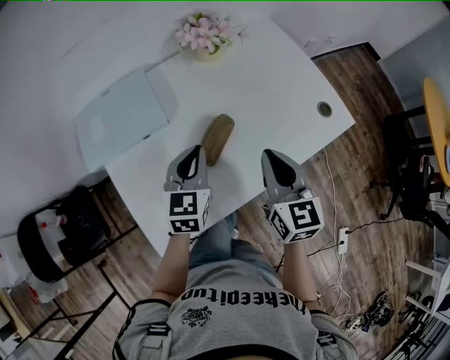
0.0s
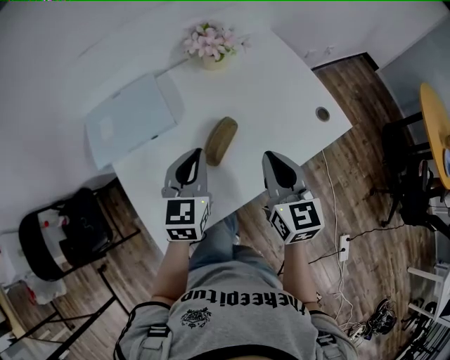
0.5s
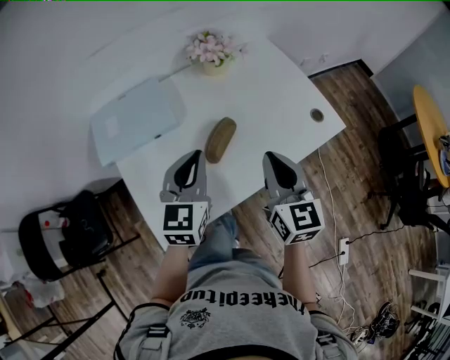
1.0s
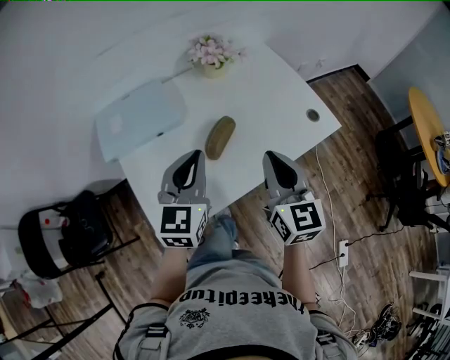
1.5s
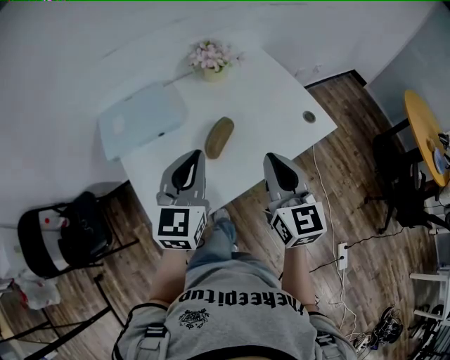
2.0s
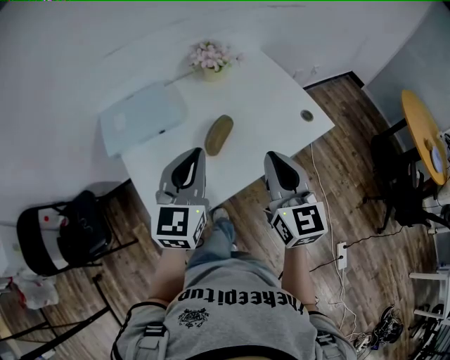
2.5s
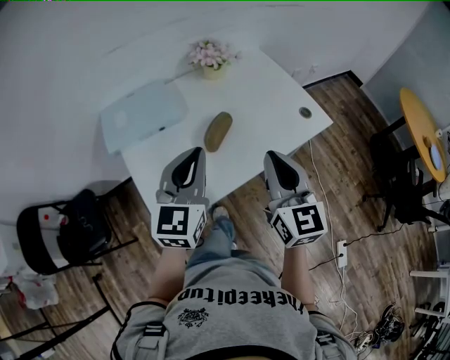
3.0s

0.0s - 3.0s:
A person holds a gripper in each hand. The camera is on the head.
0.0s - 1.5s: The left gripper goes roughly 15 cm upward and backward. Meanwhile the right gripper shifts approximately 10 cm backward and upward.
1.5s - 3.0s: Both grippers move backward, approximately 5 cm.

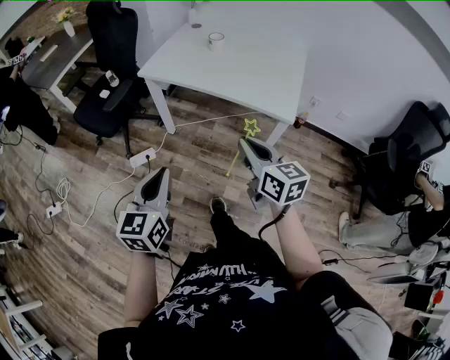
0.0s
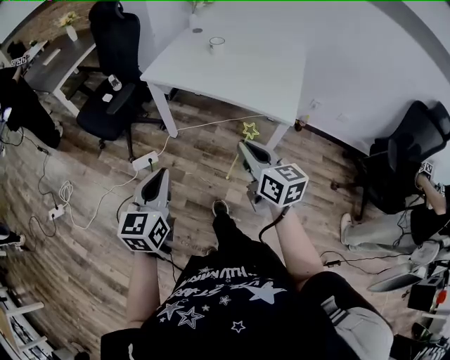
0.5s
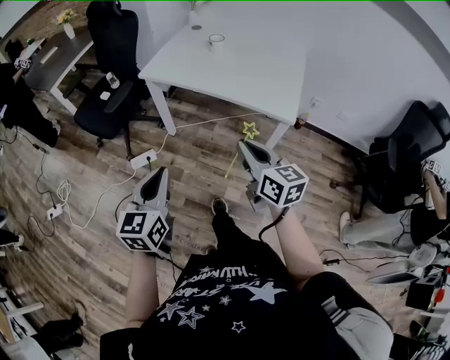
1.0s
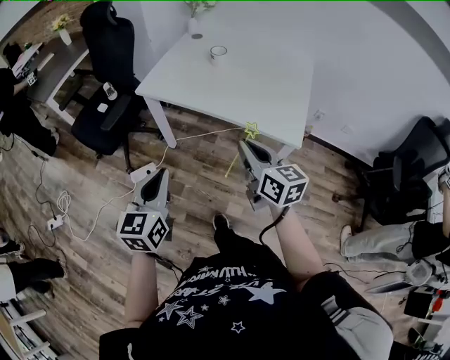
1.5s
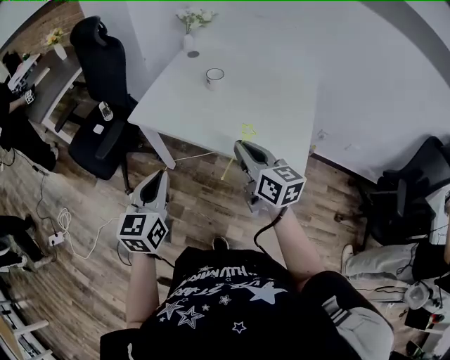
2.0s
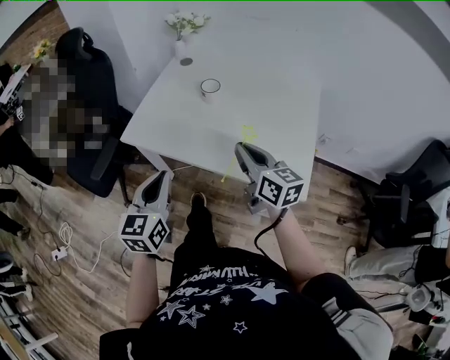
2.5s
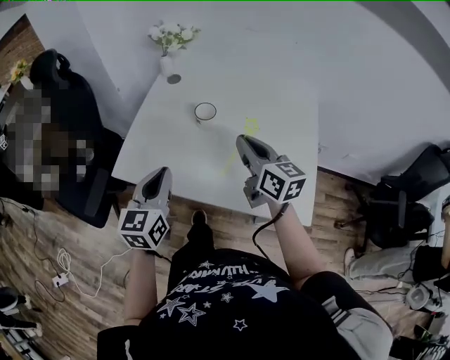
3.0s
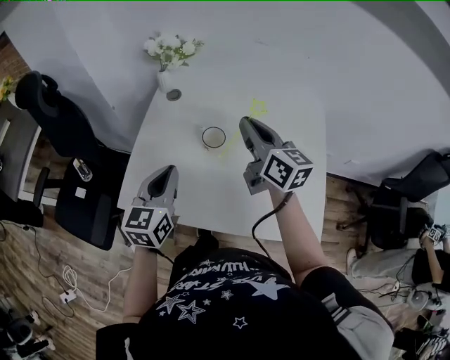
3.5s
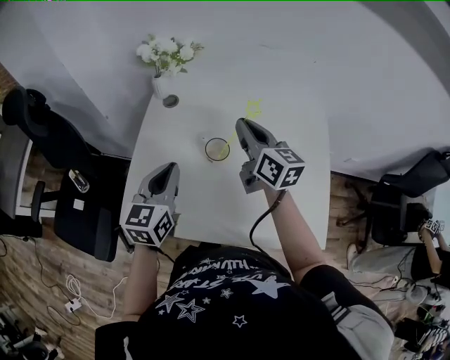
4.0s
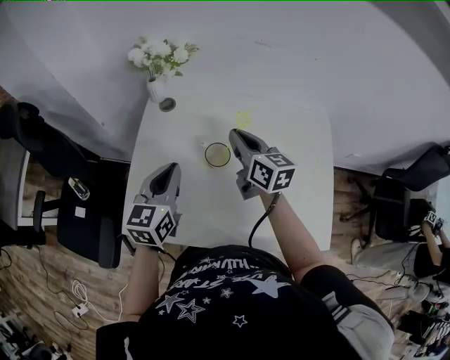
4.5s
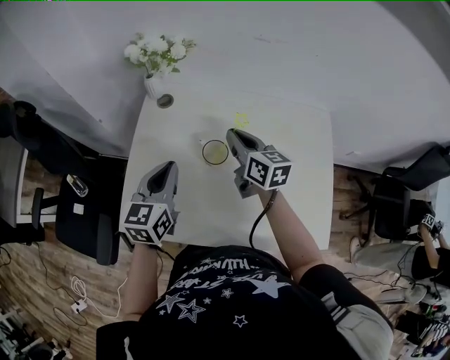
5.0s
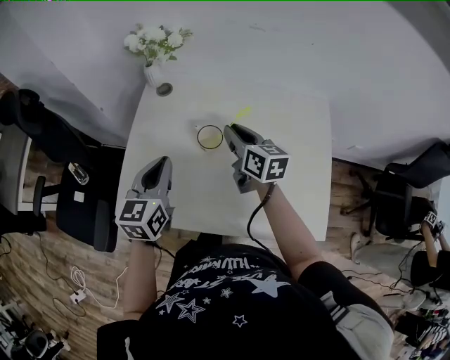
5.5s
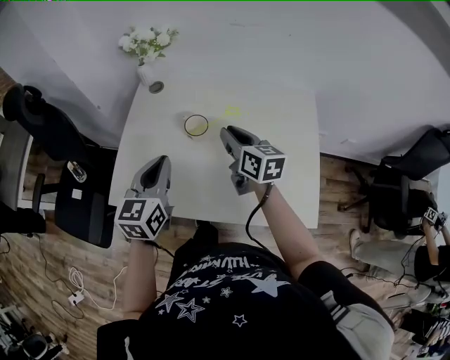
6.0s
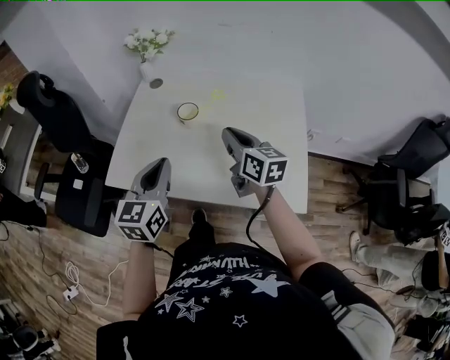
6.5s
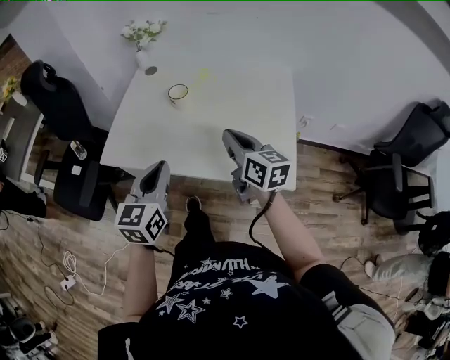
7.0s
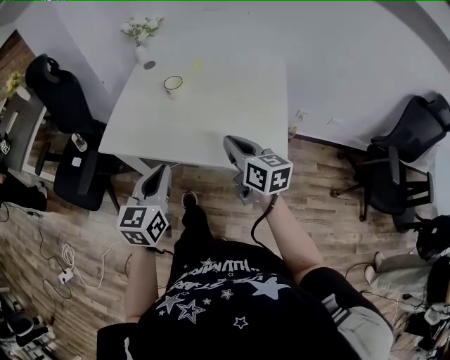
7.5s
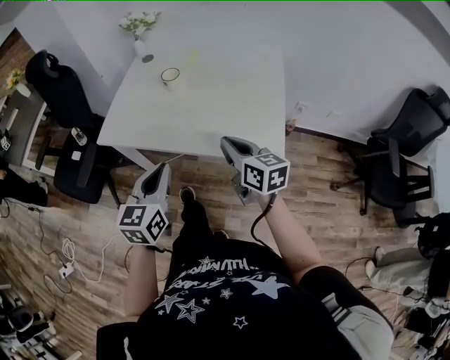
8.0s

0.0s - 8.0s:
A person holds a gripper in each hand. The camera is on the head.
0.0s - 2.0s: The two grippers go approximately 25 cm forward.
2.0s - 4.0s: The two grippers travel together, forward, about 40 cm.
4.0s - 6.0s: The left gripper is displaced backward by roughly 5 cm, while the right gripper moves downward and backward, approximately 10 cm.
6.0s - 8.0s: Both grippers travel together backward, roughly 30 cm.

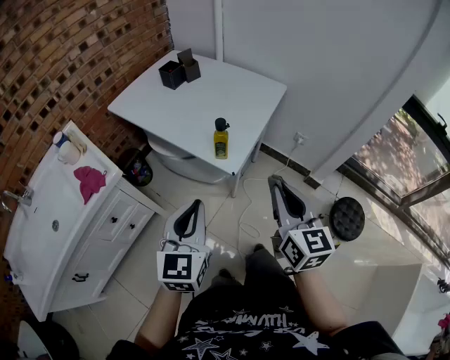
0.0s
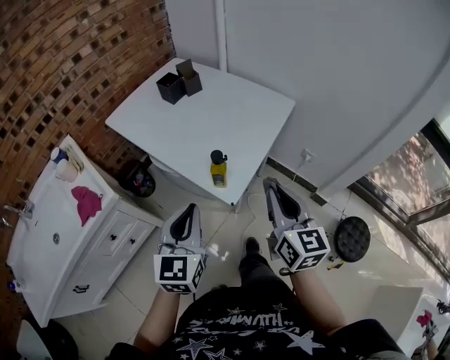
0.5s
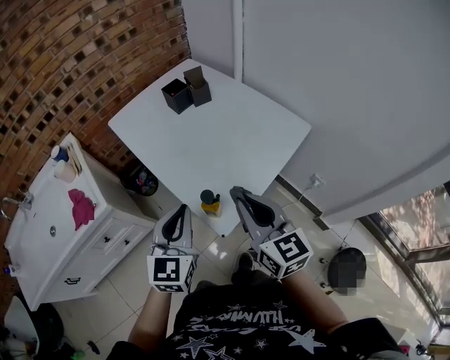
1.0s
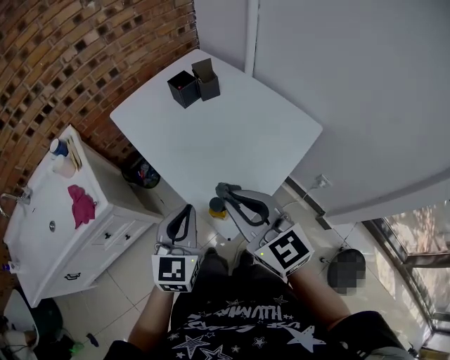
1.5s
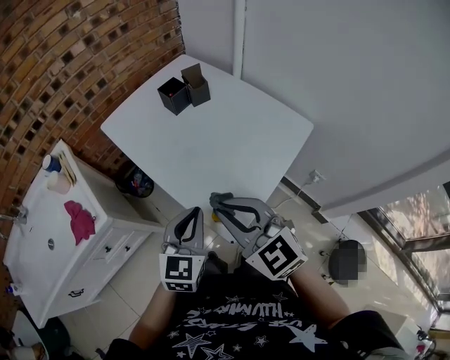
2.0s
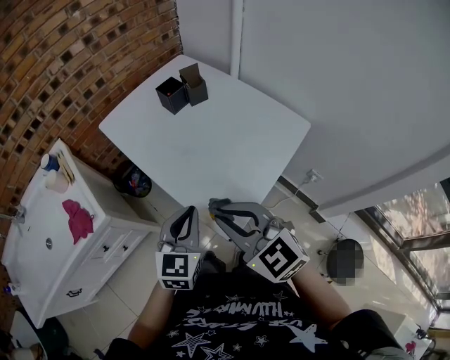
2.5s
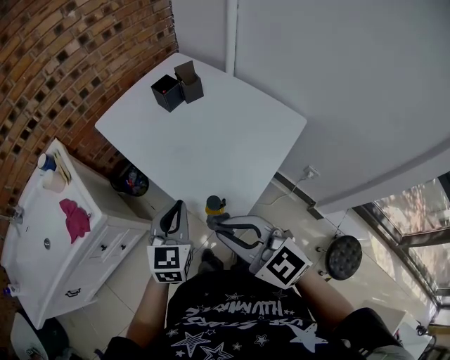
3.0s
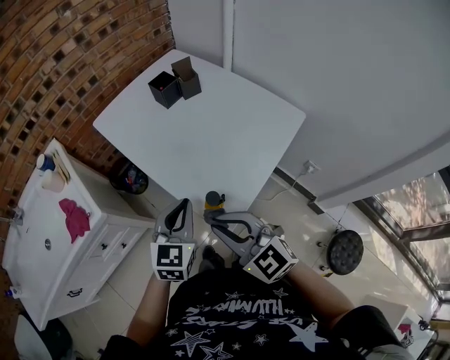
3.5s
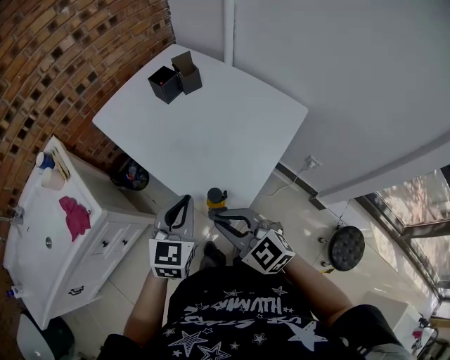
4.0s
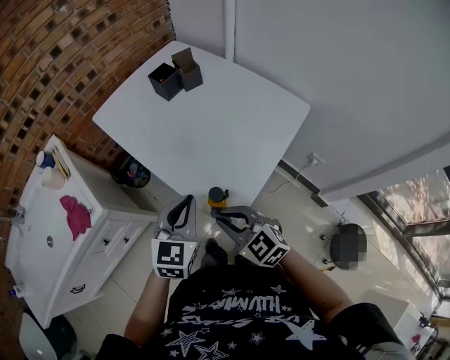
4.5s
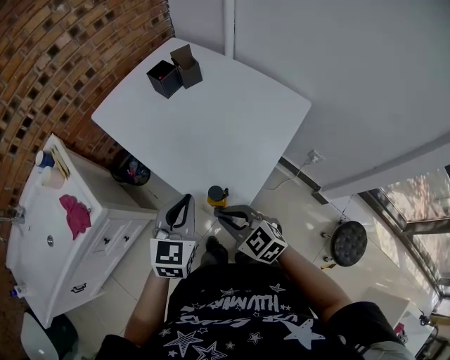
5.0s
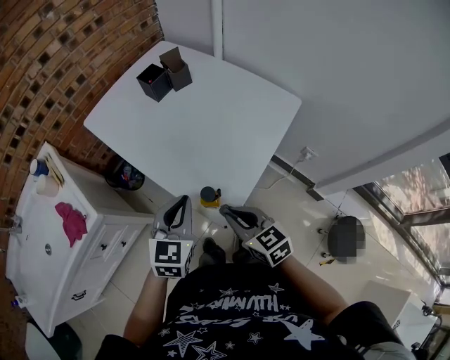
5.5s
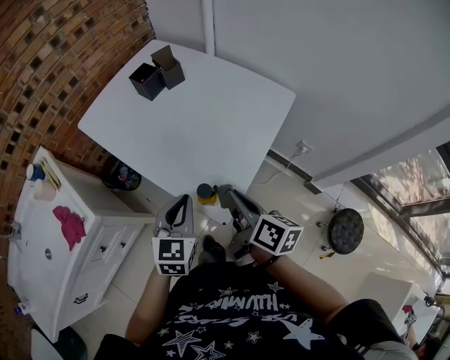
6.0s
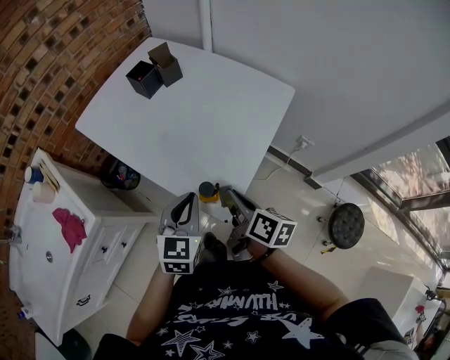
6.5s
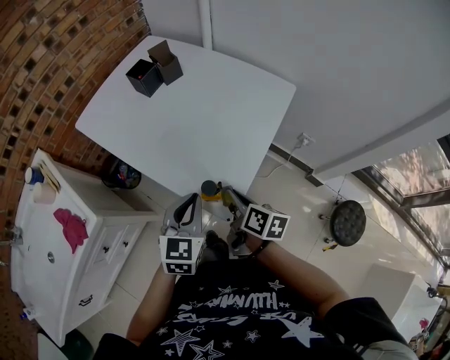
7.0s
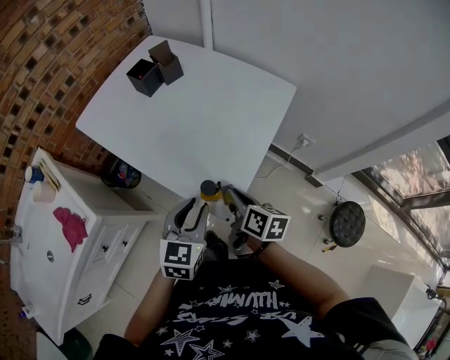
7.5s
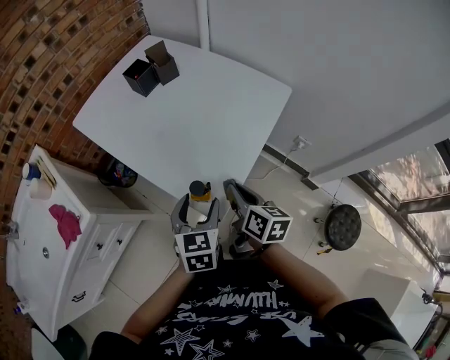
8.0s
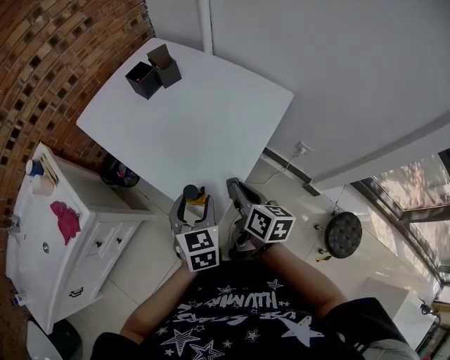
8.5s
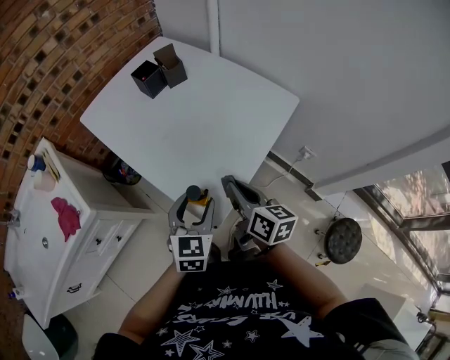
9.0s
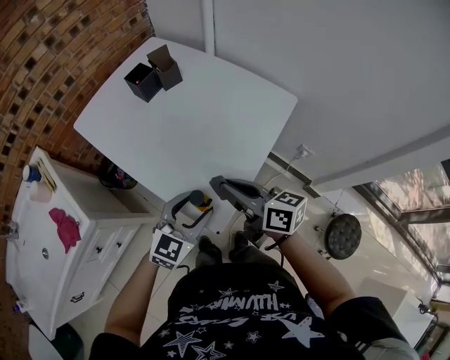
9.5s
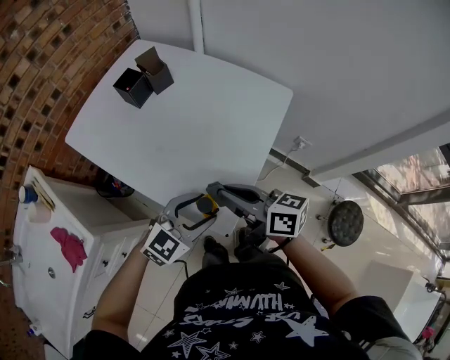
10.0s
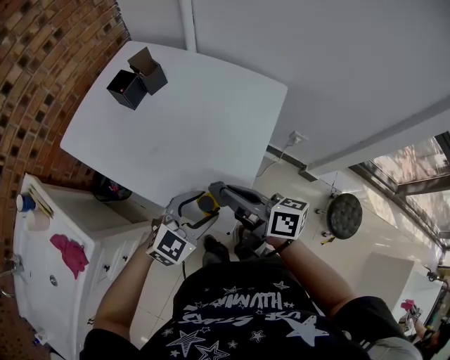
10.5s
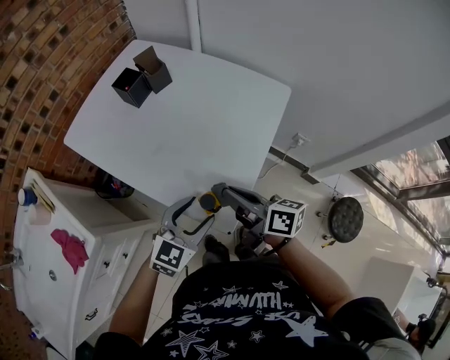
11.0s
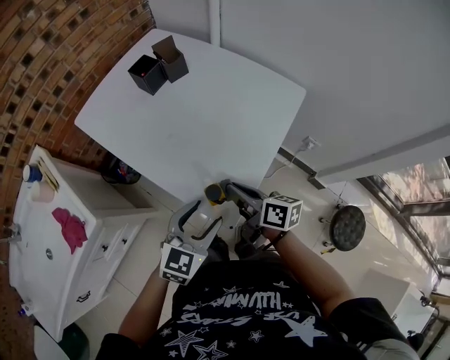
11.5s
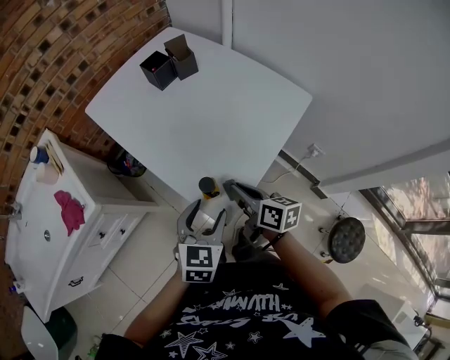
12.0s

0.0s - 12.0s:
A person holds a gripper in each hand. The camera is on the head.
0.0s - 2.0s: The right gripper ends up some 25 cm from where it was, and changes its angle by roughly 50 degrees, while the left gripper ends up about 20 cm from where it was.
2.0s - 4.0s: The right gripper travels downward by roughly 10 cm.
4.0s - 6.0s: The right gripper heads to the right, covering roughly 10 cm, and twists approximately 70 degrees clockwise, seen from behind.
6.0s - 8.0s: The right gripper shifts some 5 cm downward; the left gripper shifts by approximately 5 cm, and opens its fingers.
8.0s - 10.0s: The right gripper heads upward, covering approximately 10 cm, and changes its angle by roughly 30 degrees; the left gripper changes its angle by approximately 50 degrees.
10.0s - 12.0s: The left gripper turns by about 50 degrees. The right gripper travels downward by about 10 cm.

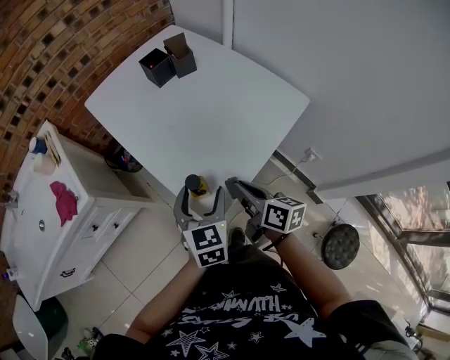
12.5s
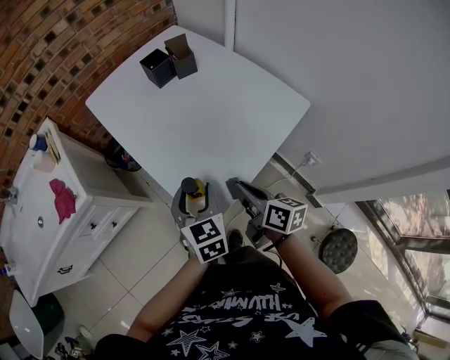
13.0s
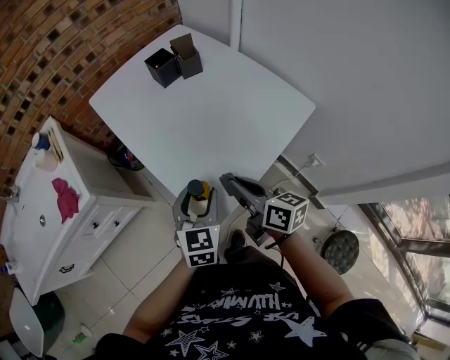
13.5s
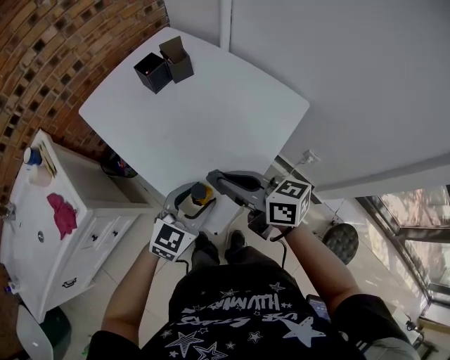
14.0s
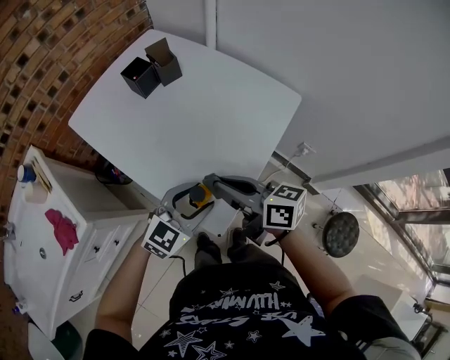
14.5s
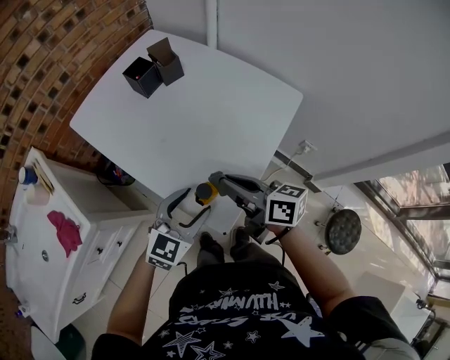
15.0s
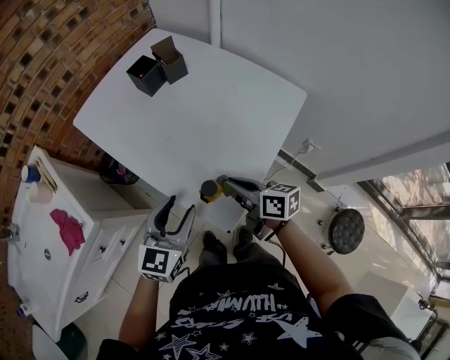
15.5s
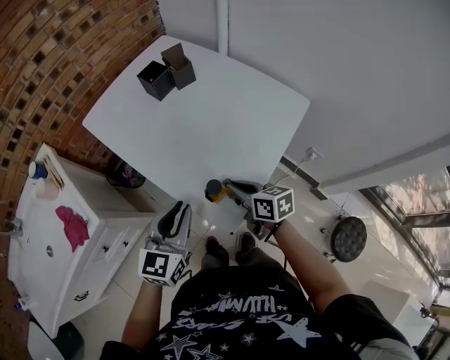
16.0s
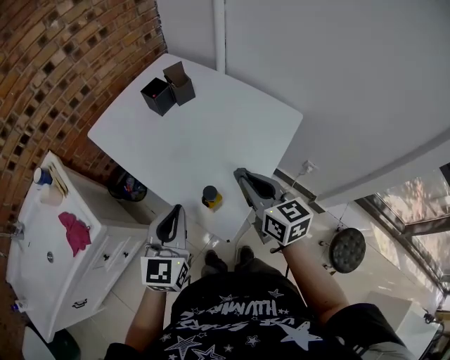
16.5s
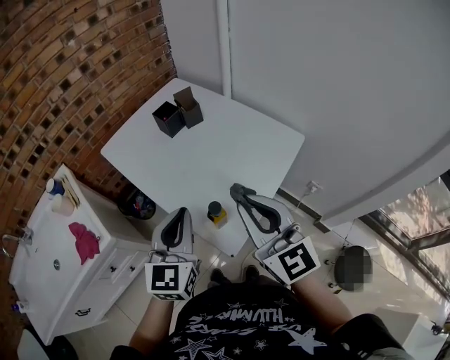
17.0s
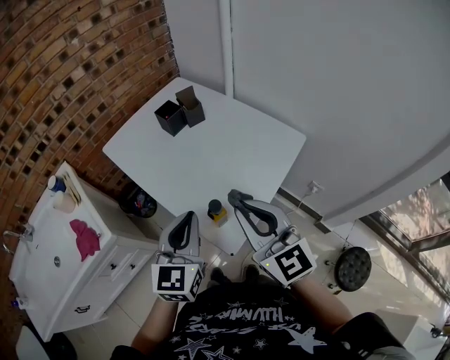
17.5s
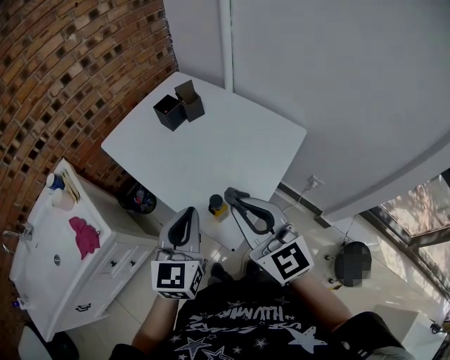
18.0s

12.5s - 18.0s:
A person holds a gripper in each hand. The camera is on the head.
12.5s - 14.5s: The left gripper changes its angle by some 60 degrees. The right gripper shifts roughly 10 cm upward.
14.5s - 16.0s: The right gripper goes some 10 cm downward; the left gripper is displaced to the left and upward by roughly 10 cm, changes its angle by roughly 30 degrees, and closes up.
16.0s - 18.0s: The left gripper moves upward, approximately 10 cm, while the right gripper travels upward by roughly 25 cm, and rolls counterclockwise, seen from behind, by some 40 degrees.
